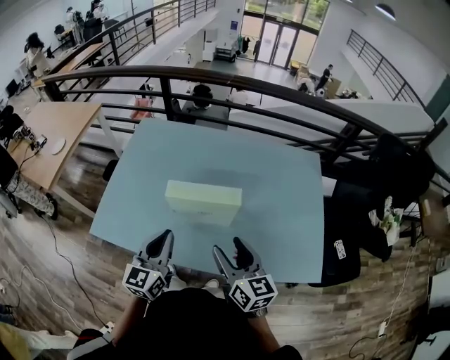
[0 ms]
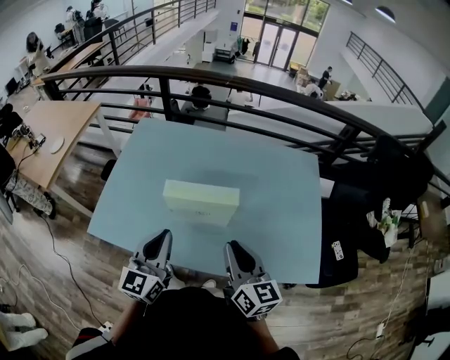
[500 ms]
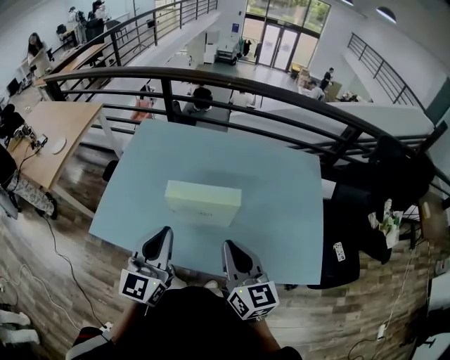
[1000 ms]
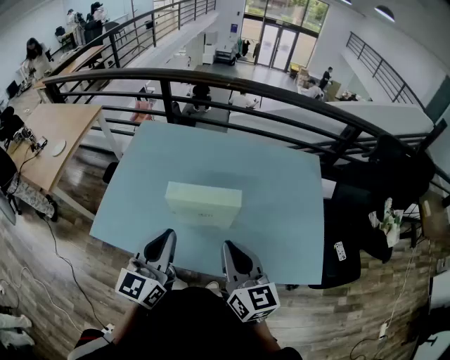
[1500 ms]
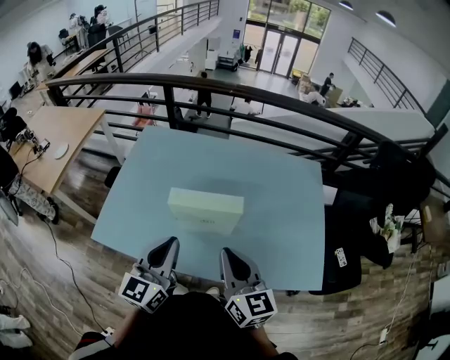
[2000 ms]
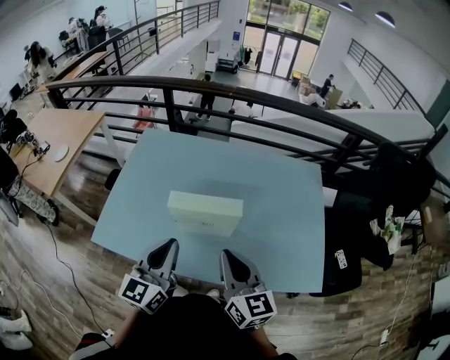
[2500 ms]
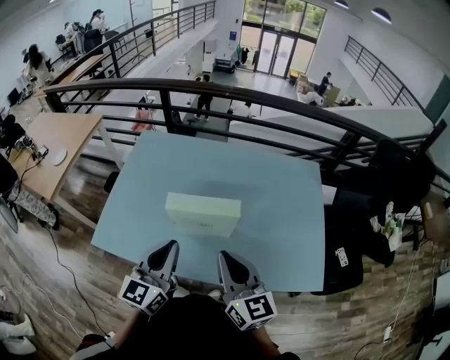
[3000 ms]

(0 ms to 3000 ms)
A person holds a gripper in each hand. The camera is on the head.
0 ms - 1500 ms: Both grippers travel together upward, approximately 5 cm. The right gripper closes up.
1500 ms - 3000 ms: The grippers stay close to where they were, moving slightly.

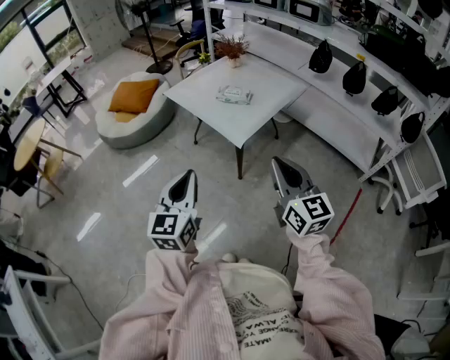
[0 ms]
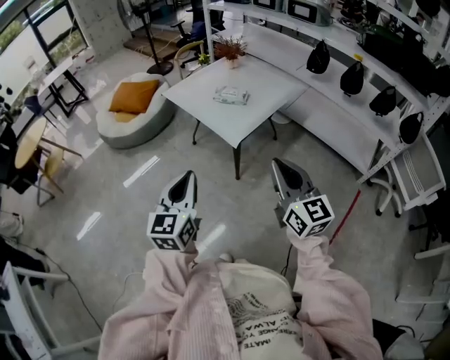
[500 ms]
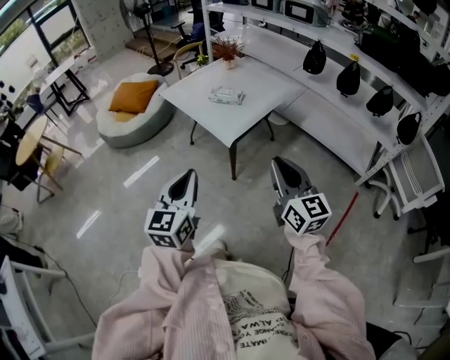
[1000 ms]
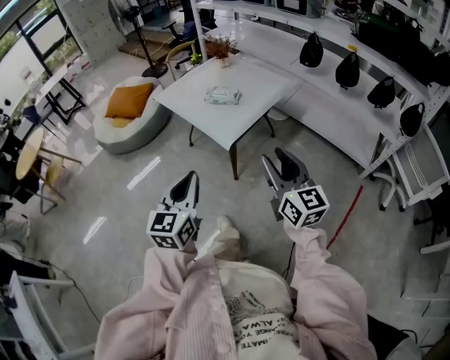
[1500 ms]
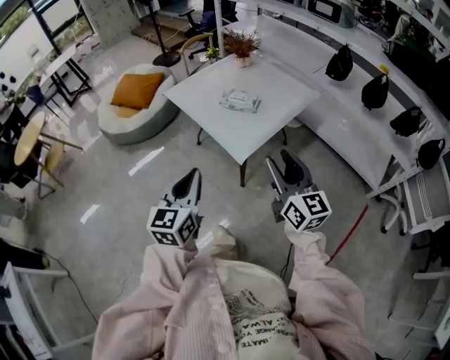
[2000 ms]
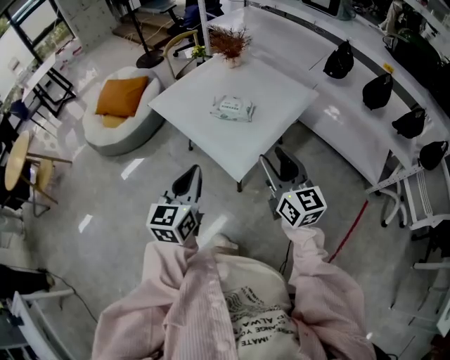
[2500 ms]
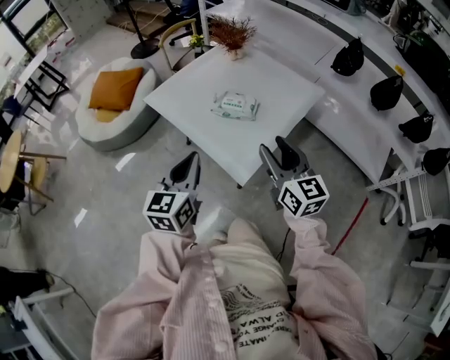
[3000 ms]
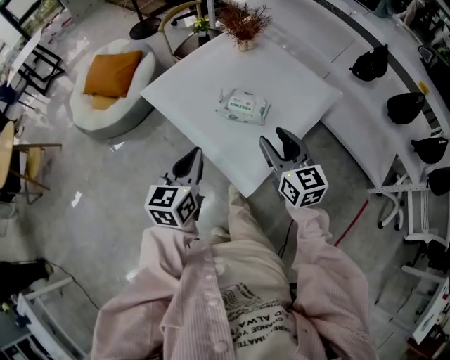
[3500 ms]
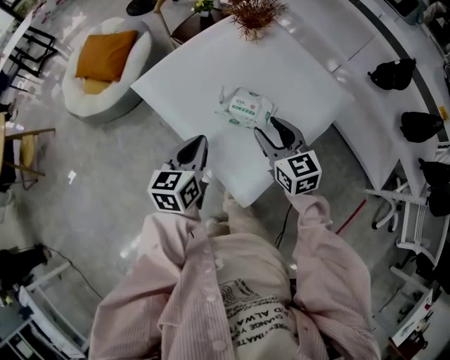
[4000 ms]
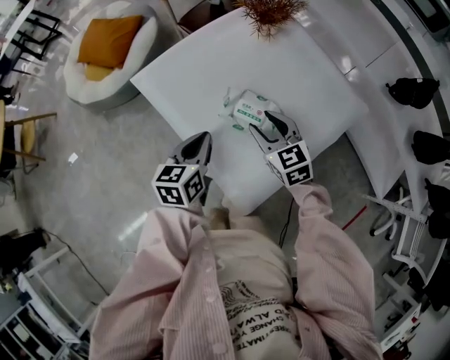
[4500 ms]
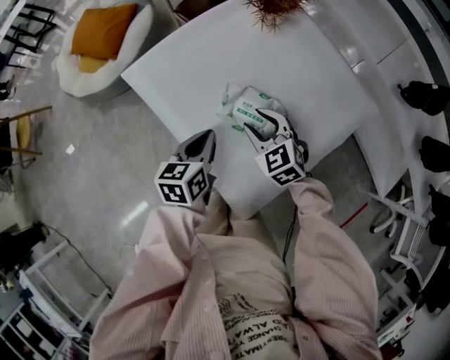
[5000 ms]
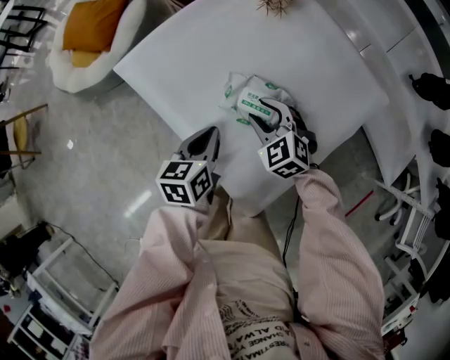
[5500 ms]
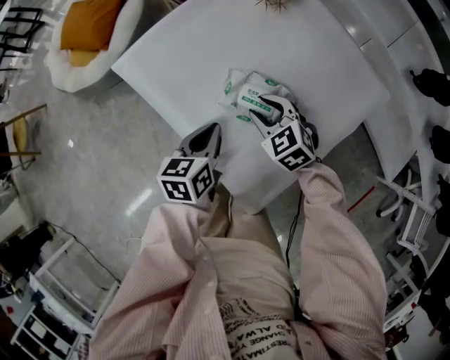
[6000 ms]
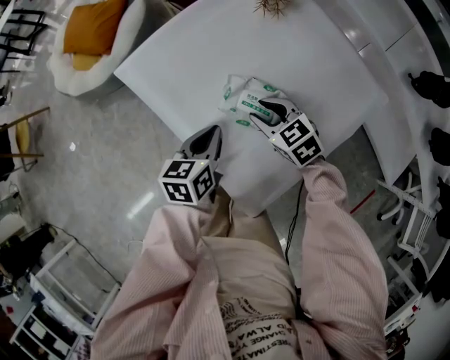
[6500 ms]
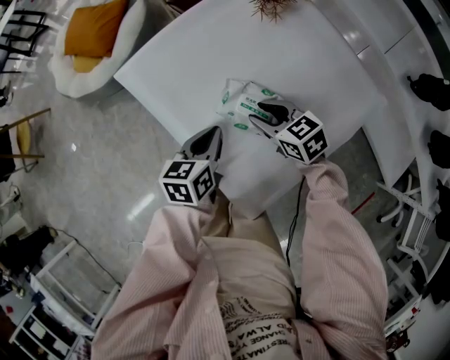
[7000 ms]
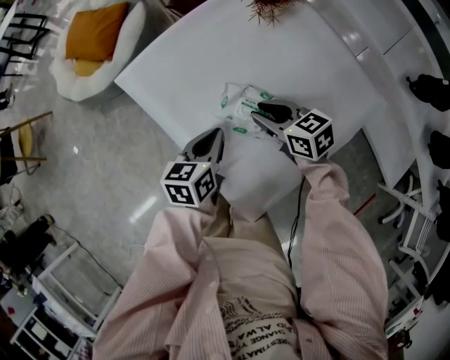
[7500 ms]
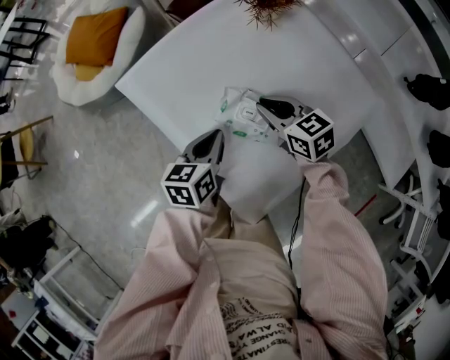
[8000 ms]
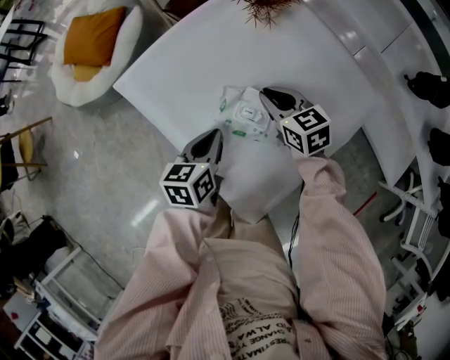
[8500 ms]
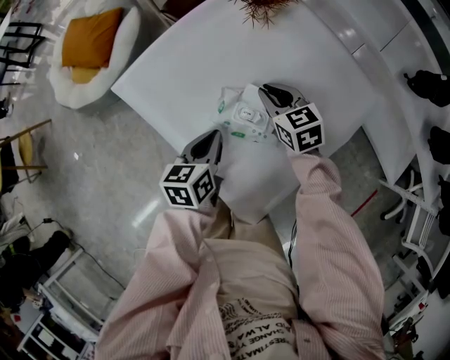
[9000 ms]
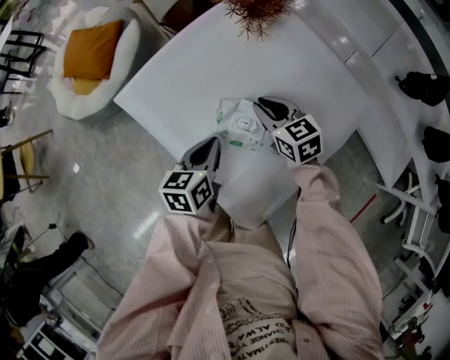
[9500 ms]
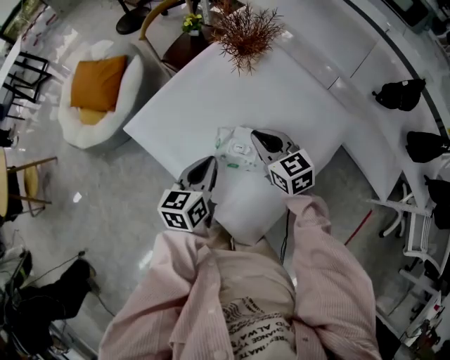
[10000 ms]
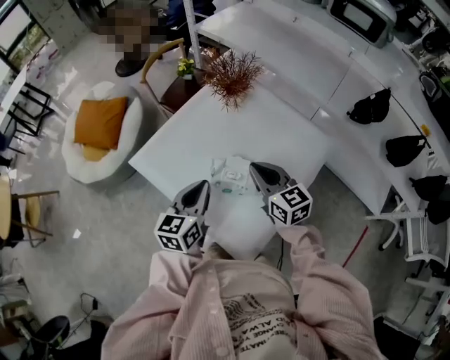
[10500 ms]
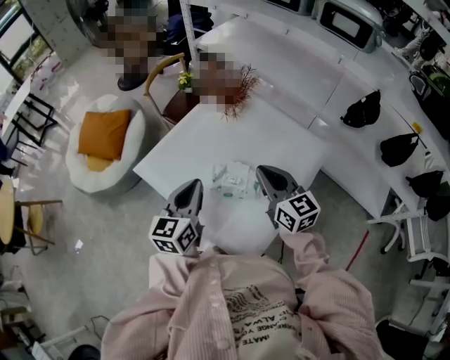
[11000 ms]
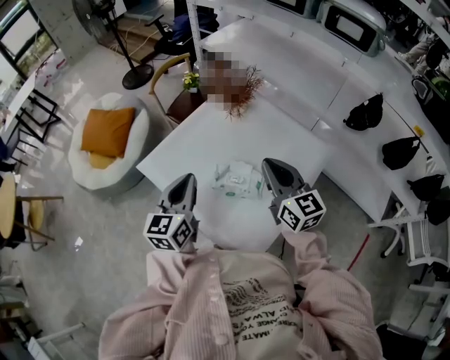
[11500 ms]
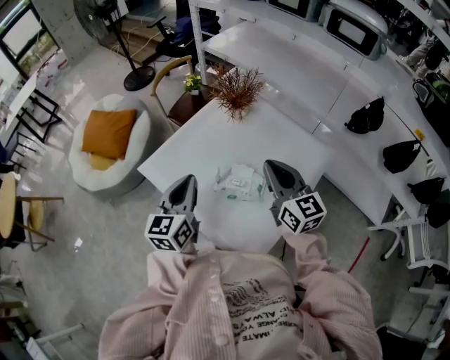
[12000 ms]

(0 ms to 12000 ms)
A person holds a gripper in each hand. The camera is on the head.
0 ms - 2000 ms: Both grippers move forward, roughly 15 cm. The right gripper opens.
2000 ms - 4000 ms: The right gripper travels forward and downward by approximately 40 cm, and changes its angle by about 30 degrees, while the left gripper heads forward, covering roughly 40 cm, and swivels about 20 degrees.
4000 ms - 6000 ms: The two grippers go approximately 15 cm downward and forward. The right gripper changes its angle by approximately 30 degrees.
6000 ms - 8000 ms: The right gripper moves about 5 cm, rotates about 30 degrees, and closes its fingers.
8000 ms - 10000 ms: Both grippers travel together upward, approximately 5 cm.
10000 ms - 12000 ms: Both grippers move upward, about 15 cm. The left gripper swivels some 20 degrees. Meanwhile the right gripper rotates roughly 30 degrees.

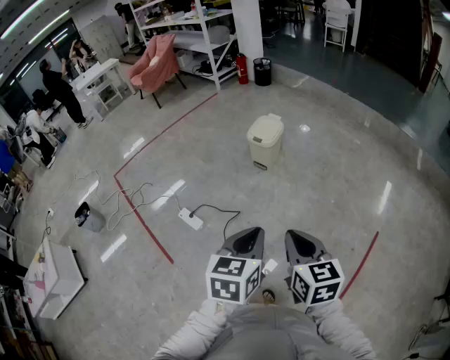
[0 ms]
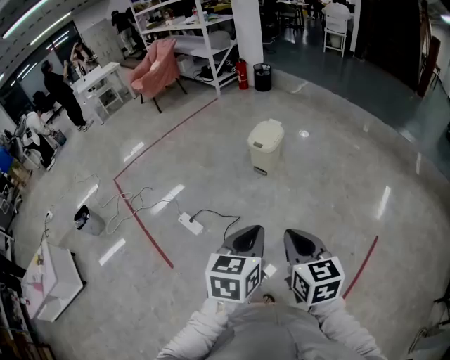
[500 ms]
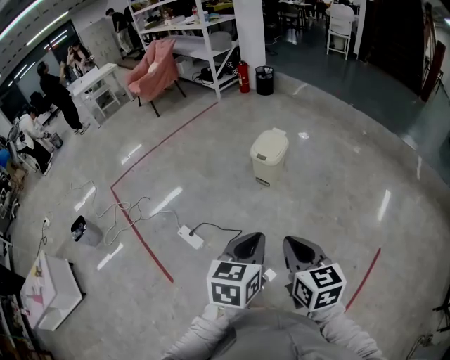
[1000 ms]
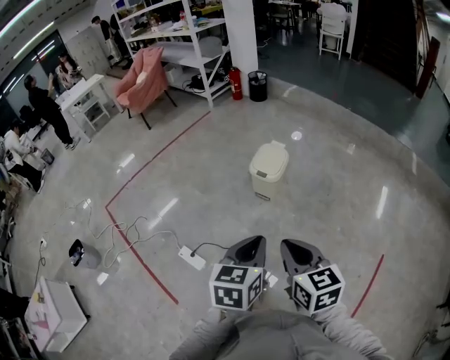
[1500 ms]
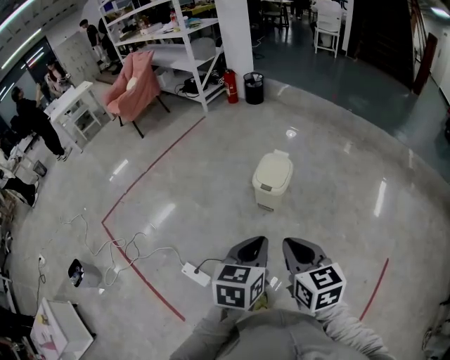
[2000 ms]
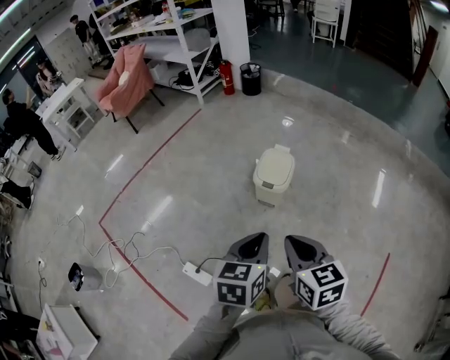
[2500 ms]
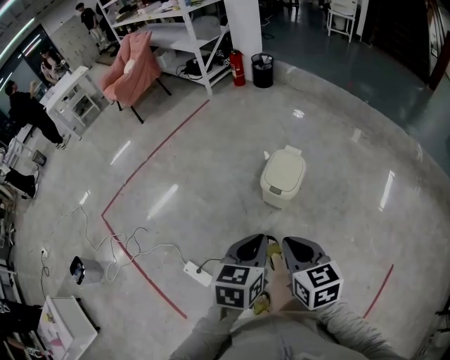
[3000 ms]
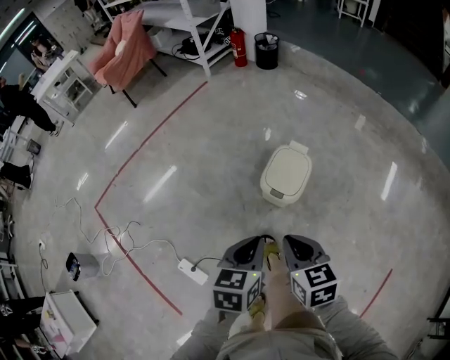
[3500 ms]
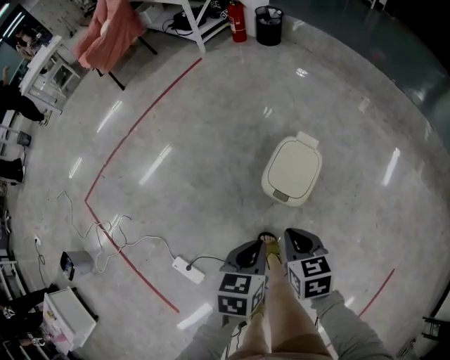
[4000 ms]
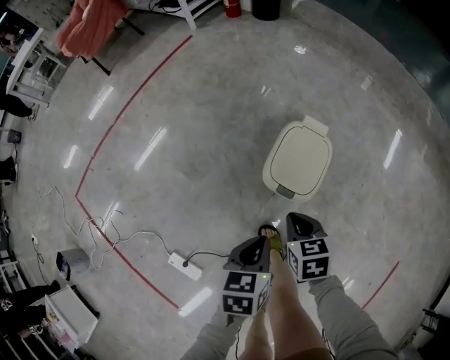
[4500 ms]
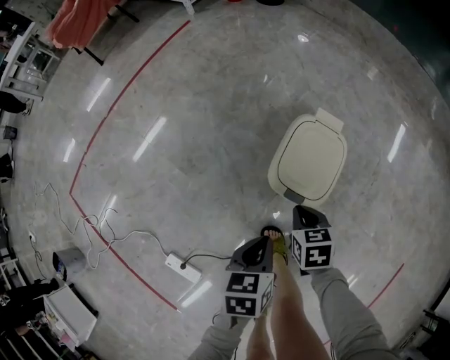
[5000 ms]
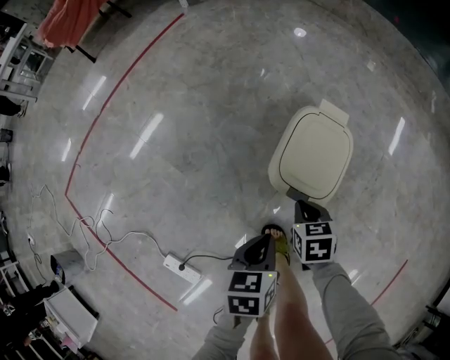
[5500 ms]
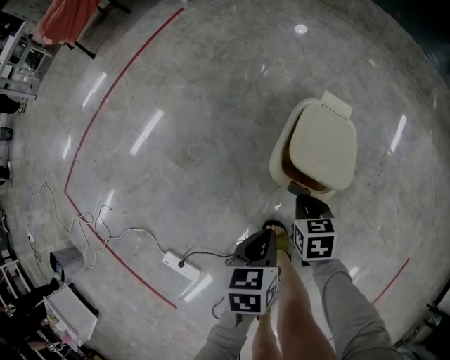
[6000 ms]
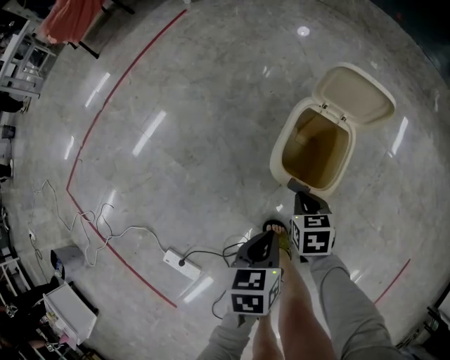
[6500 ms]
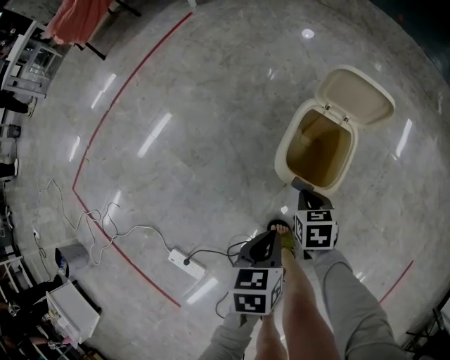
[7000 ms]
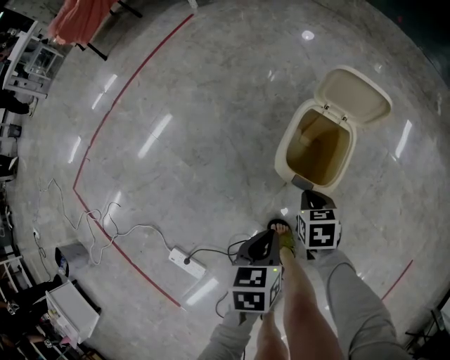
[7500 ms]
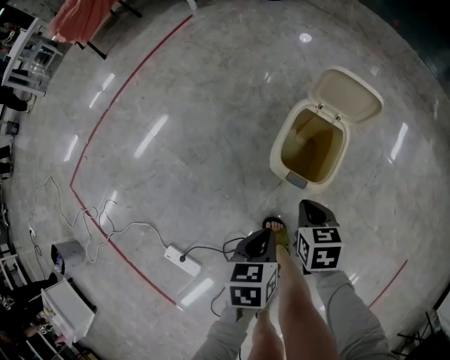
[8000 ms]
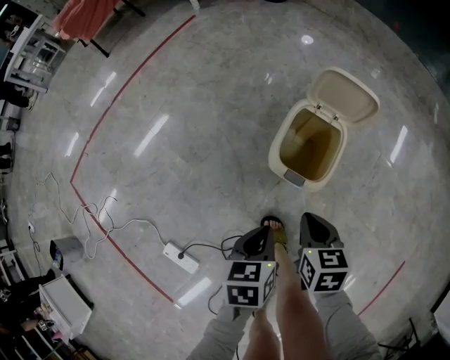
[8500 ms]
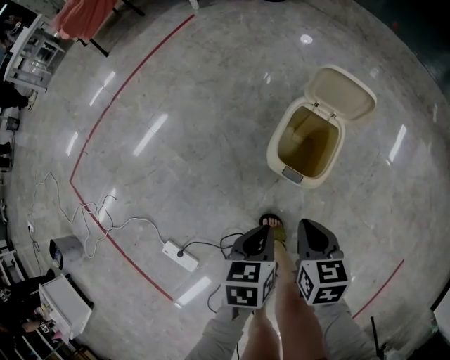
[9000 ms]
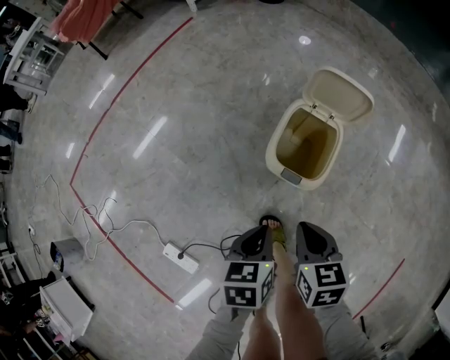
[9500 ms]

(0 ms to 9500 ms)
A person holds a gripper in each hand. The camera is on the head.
0 ms - 2000 ms: The grippers both shift forward by about 35 cm.
2000 ms - 4000 ms: Both grippers travel together forward and downward, roughly 35 cm. The right gripper turns by about 20 degrees.
4000 ms - 5500 ms: Both grippers travel together downward, approximately 25 cm.
5500 ms - 7500 ms: The grippers stay close to where they were, moving slightly.
7500 ms - 9500 ms: The right gripper moves upward and backward, roughly 15 cm.

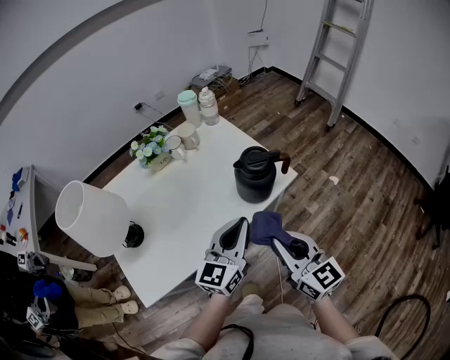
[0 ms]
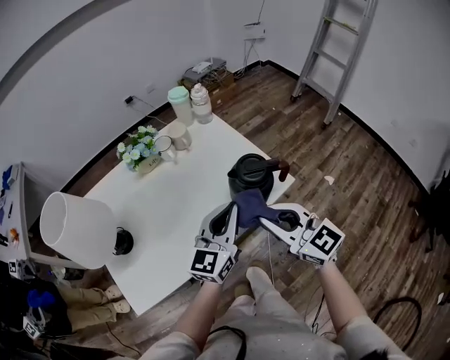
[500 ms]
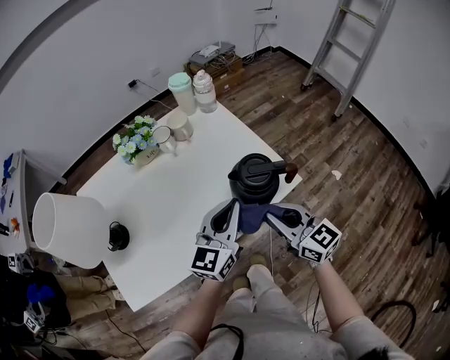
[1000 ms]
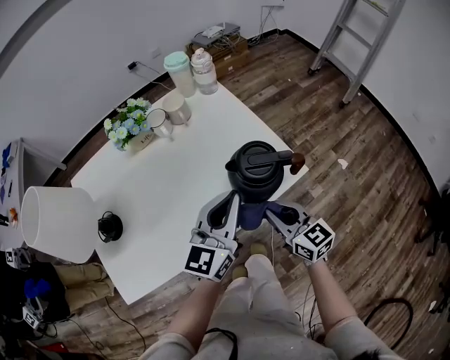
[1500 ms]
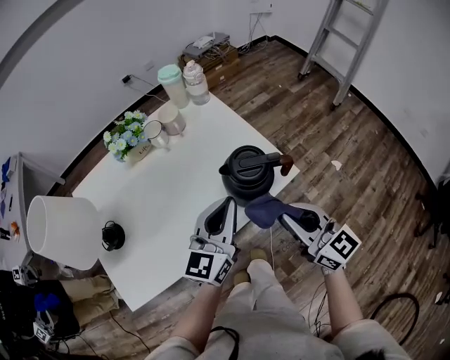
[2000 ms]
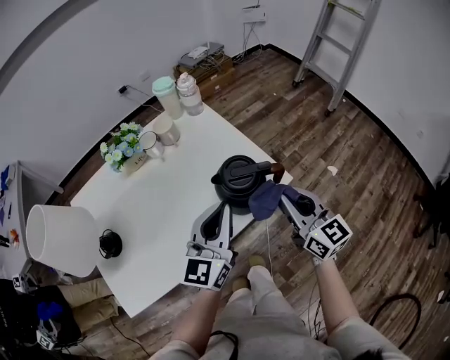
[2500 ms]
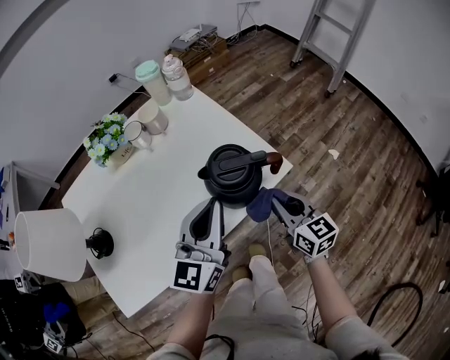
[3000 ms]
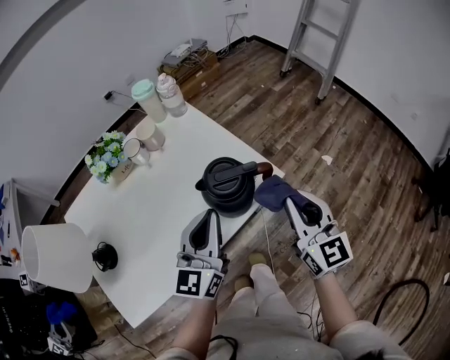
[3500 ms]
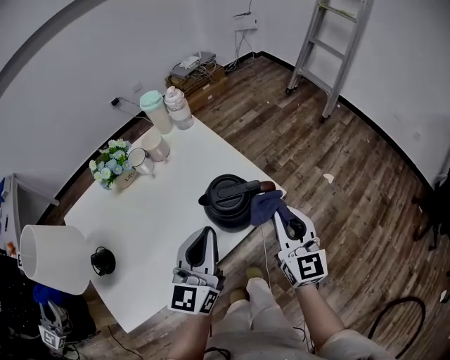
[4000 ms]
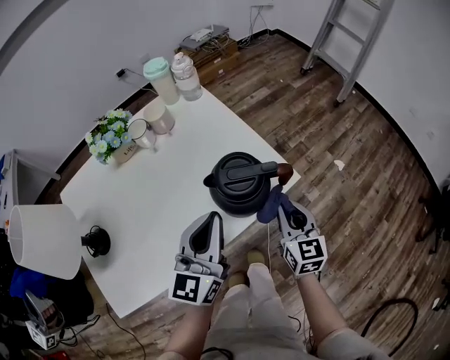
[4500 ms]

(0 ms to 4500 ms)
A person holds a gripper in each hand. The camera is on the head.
0 ms - 2000 ms: The left gripper shifts roughly 10 cm forward. The right gripper goes some 15 cm forward and to the right, and travels downward and back again, approximately 15 cm each way.
2000 ms - 4500 ms: The right gripper swings up and down, approximately 15 cm each way, with 2 reversals, and changes its angle by some 30 degrees.
